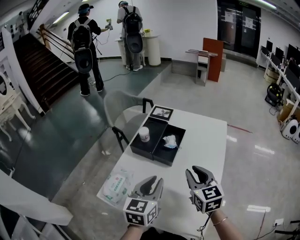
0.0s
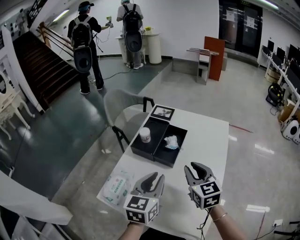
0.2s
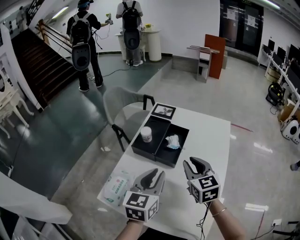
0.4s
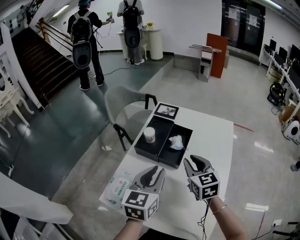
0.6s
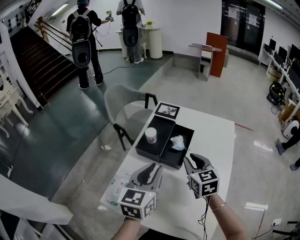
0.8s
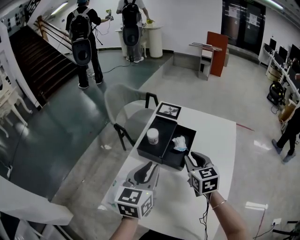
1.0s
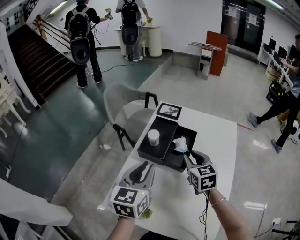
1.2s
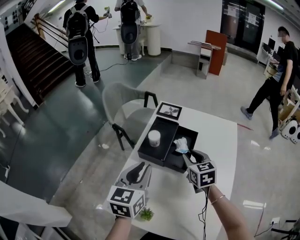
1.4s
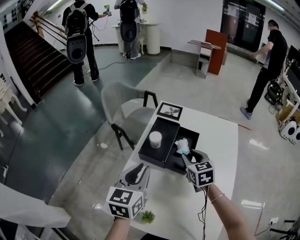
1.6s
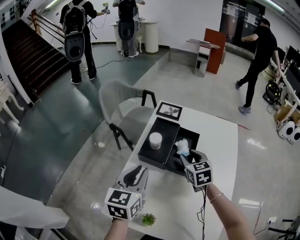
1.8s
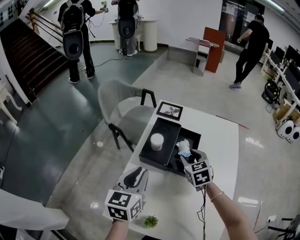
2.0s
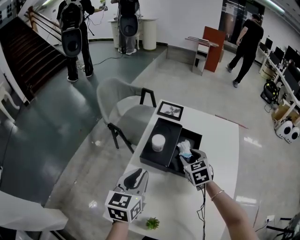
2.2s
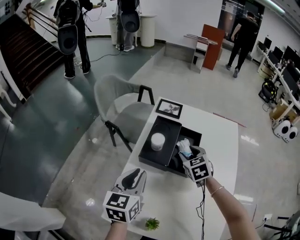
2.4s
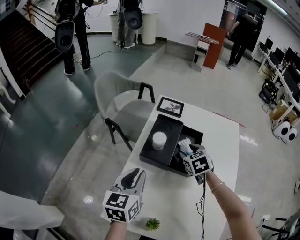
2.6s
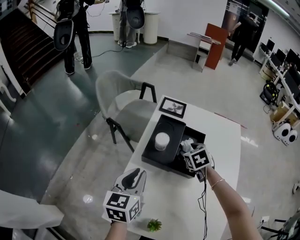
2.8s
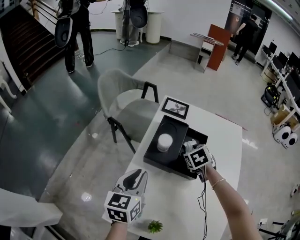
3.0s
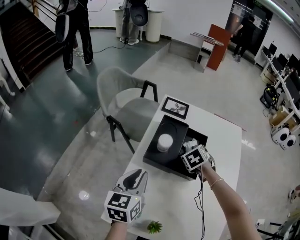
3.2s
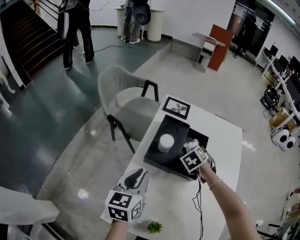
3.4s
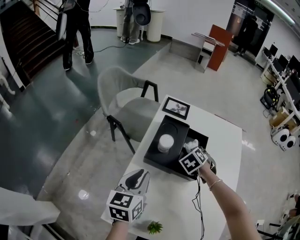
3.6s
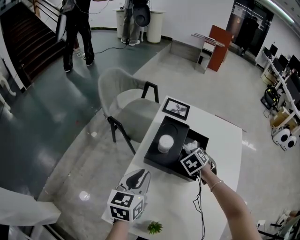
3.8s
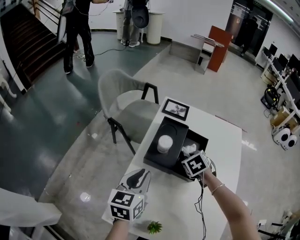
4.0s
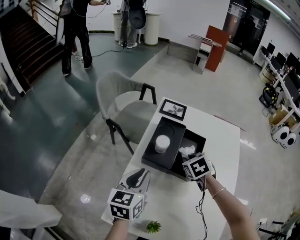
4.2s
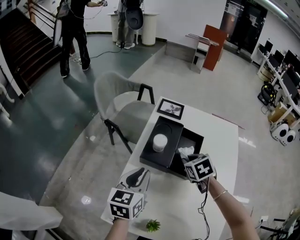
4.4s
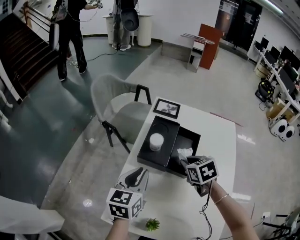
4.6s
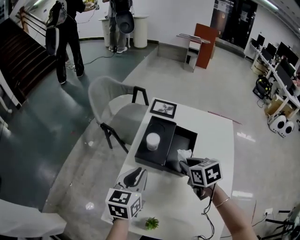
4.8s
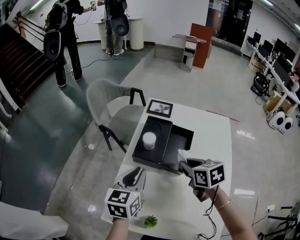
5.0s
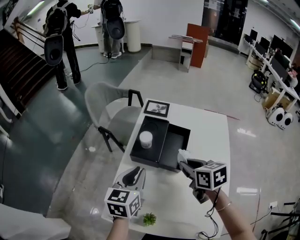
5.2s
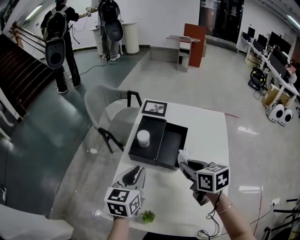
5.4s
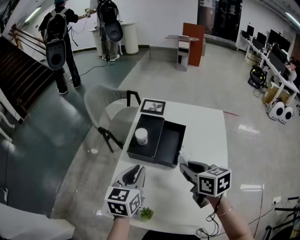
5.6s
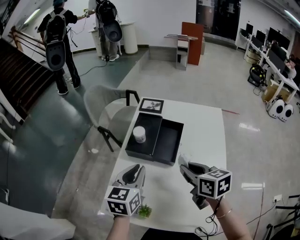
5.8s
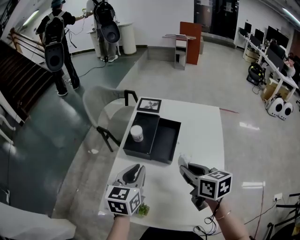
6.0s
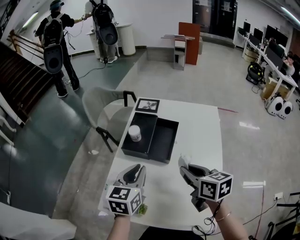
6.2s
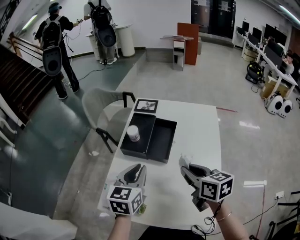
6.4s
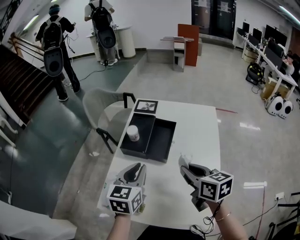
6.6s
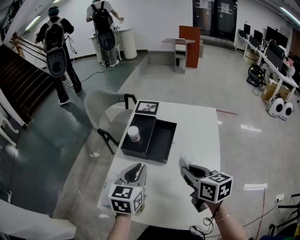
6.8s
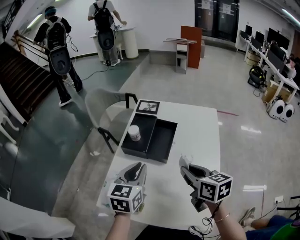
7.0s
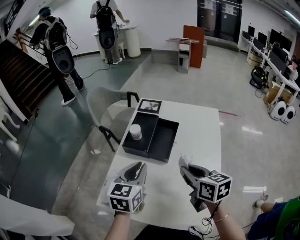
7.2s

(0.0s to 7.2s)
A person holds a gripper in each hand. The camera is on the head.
0.0s - 1.4s: The left gripper goes about 15 cm to the left and forward; the right gripper travels forward and to the left by some 15 cm.
1.4s - 2.8s: The left gripper is displaced downward and to the left by some 10 cm. Meanwhile the right gripper goes some 10 cm downward and forward, changes its angle by roughly 30 degrees, and opens.
2.8s - 4.4s: The right gripper moves backward, about 5 cm, and closes its fingers.
4.4s - 5.8s: The right gripper is displaced backward and upward by roughly 20 cm, and rotates about 40 degrees, while the left gripper is displaced backward and to the right by roughly 10 cm.
5.8s - 7.2s: The right gripper ends up roughly 5 cm from where it was. The left gripper changes place by about 5 cm.

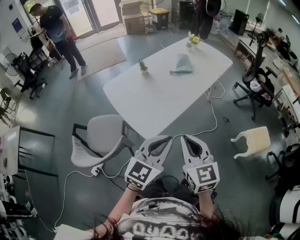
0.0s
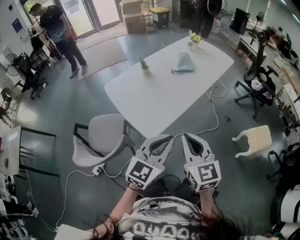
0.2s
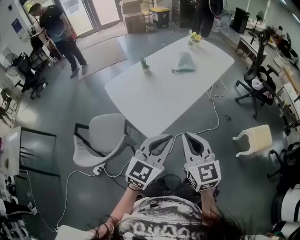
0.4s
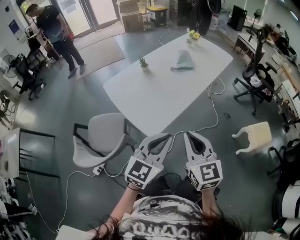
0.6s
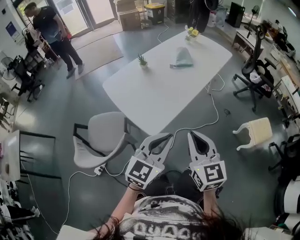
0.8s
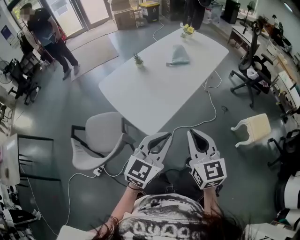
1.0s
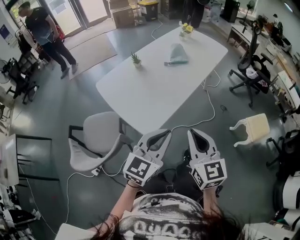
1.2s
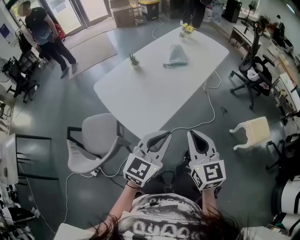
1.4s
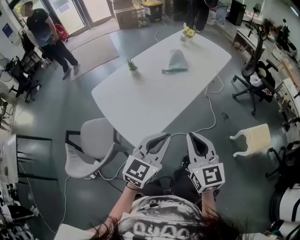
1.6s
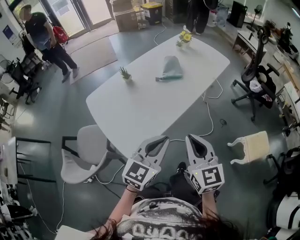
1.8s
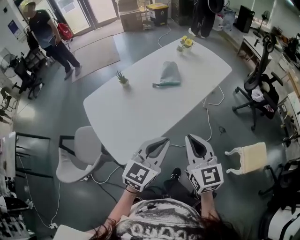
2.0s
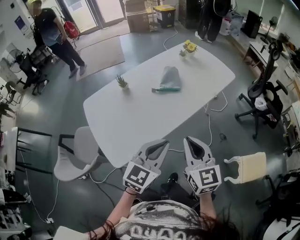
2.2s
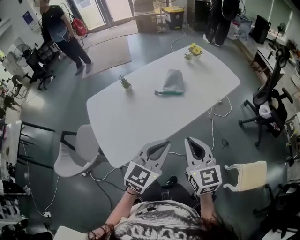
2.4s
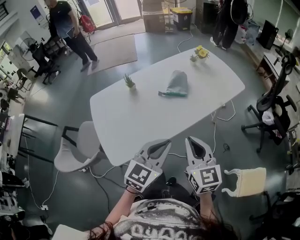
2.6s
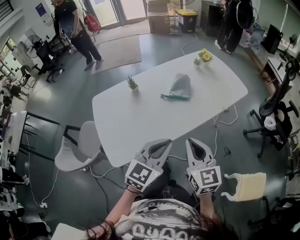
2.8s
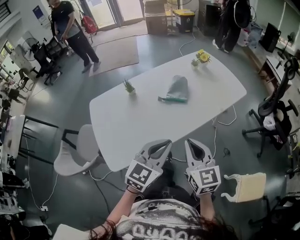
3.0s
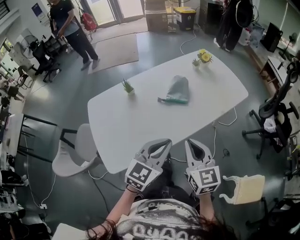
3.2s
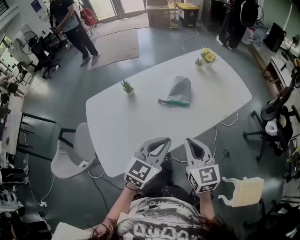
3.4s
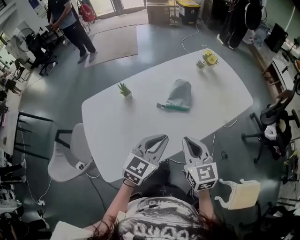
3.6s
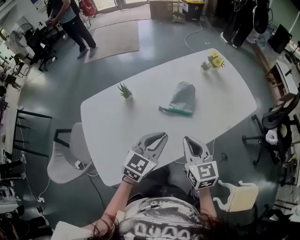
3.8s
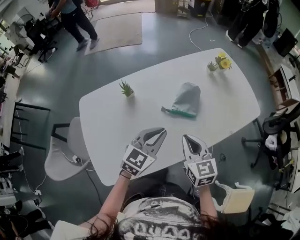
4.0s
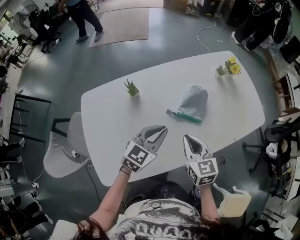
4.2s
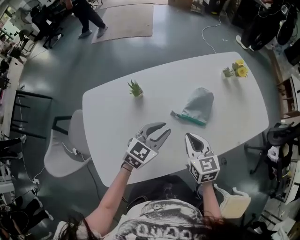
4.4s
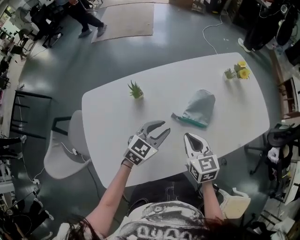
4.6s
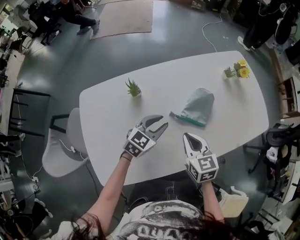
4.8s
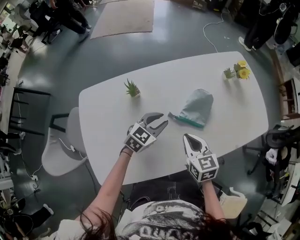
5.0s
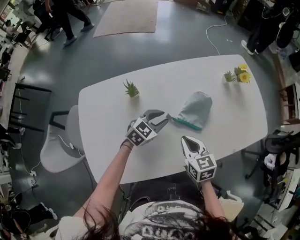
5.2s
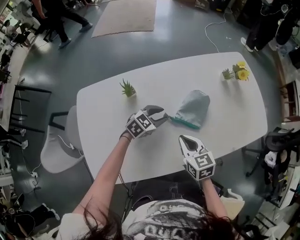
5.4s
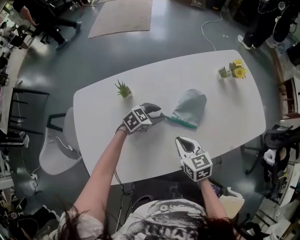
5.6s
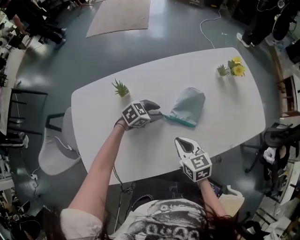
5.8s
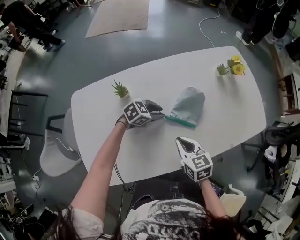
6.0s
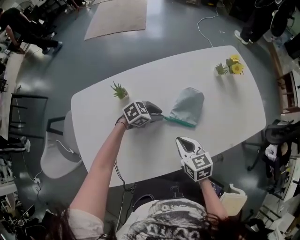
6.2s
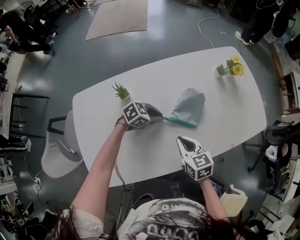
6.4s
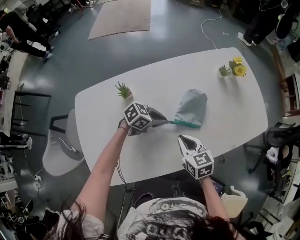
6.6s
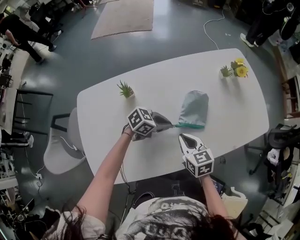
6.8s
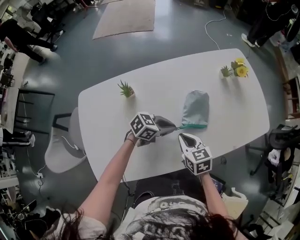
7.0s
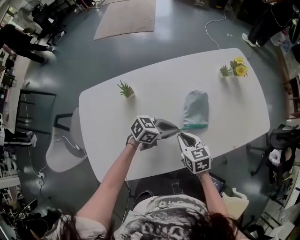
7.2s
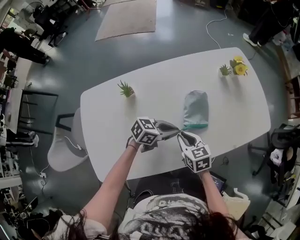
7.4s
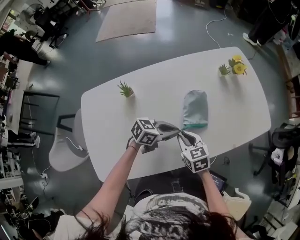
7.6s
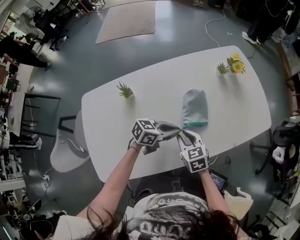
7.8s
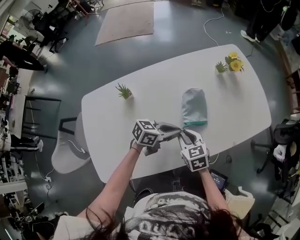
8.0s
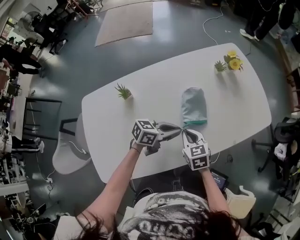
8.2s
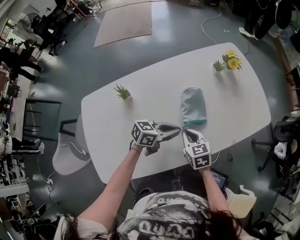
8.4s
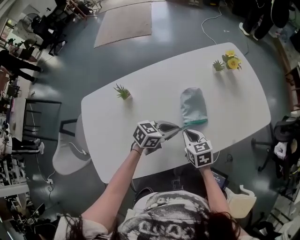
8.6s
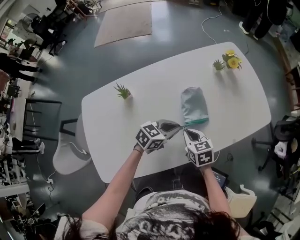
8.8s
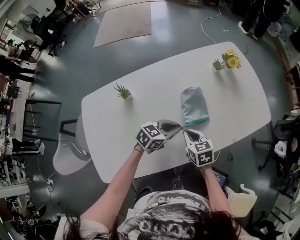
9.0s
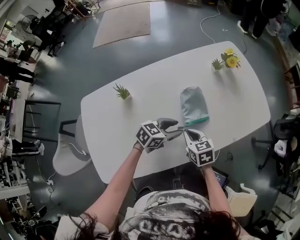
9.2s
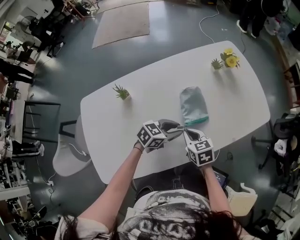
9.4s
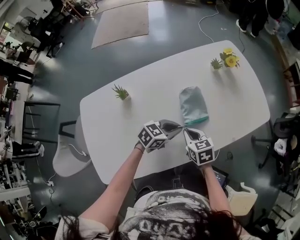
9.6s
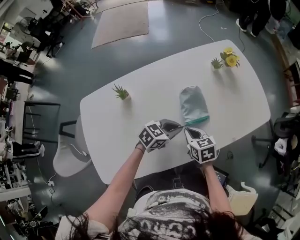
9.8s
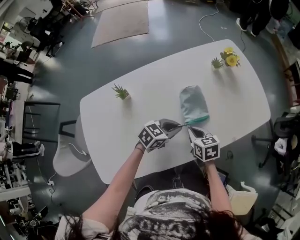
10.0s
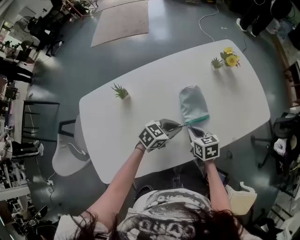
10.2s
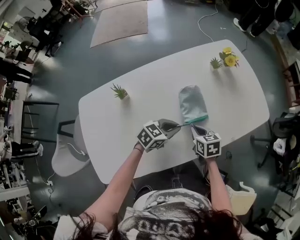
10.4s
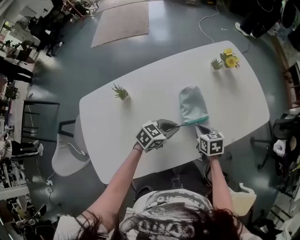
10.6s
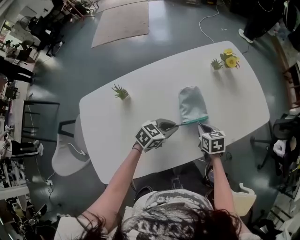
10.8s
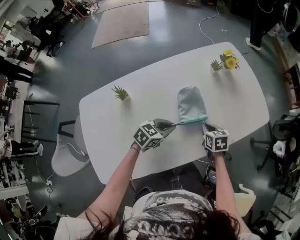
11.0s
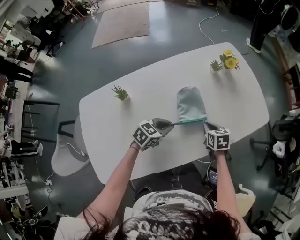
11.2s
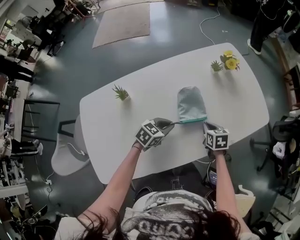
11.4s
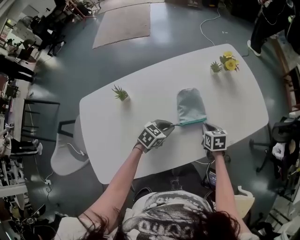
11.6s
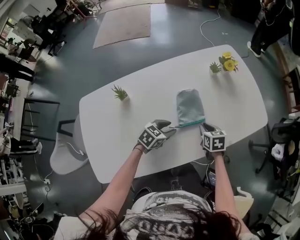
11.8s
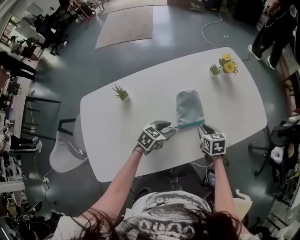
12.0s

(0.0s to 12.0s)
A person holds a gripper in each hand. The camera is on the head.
0.0s - 1.6s: The right gripper shifts roughly 10 cm forward and to the right; the left gripper goes about 10 cm forward.
1.6s - 3.0s: Both grippers move forward and to the right, approximately 25 cm.
3.0s - 4.4s: The two grippers go approximately 30 cm forward and downward. The right gripper swivels about 20 degrees.
4.4s - 6.0s: The left gripper moves downward and forward, roughly 15 cm, and changes its angle by some 30 degrees. The right gripper goes roughly 5 cm downward.
6.0s - 7.6s: The left gripper changes place by about 15 cm, swivels approximately 30 degrees, and closes.
7.6s - 9.0s: The grippers make only small movements.
9.0s - 10.4s: The left gripper opens, then closes once more; the right gripper moves about 5 cm.
10.4s - 12.0s: The left gripper opens; the right gripper is displaced to the right by approximately 5 cm, and opens.

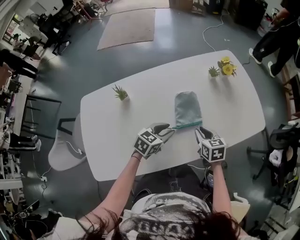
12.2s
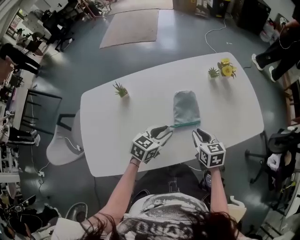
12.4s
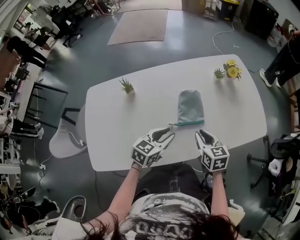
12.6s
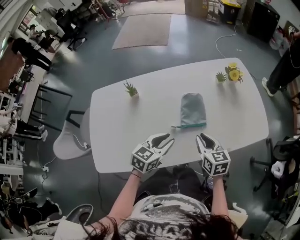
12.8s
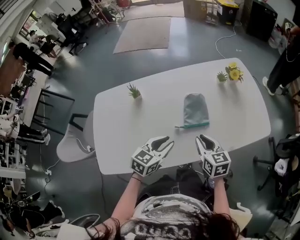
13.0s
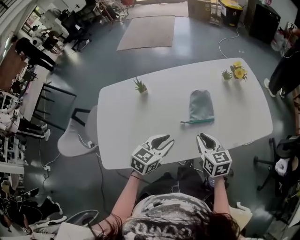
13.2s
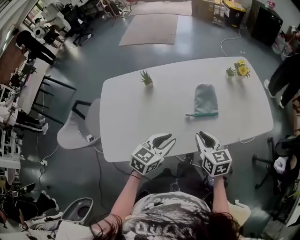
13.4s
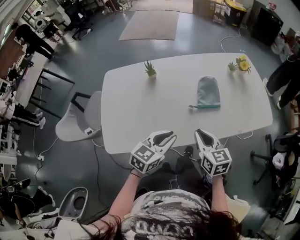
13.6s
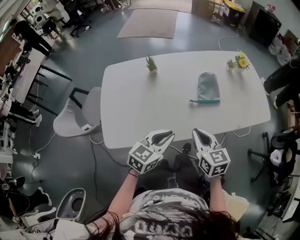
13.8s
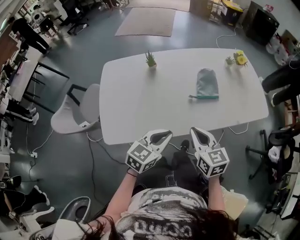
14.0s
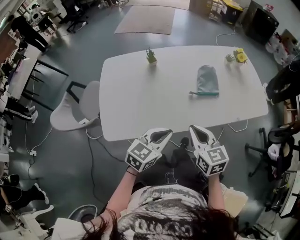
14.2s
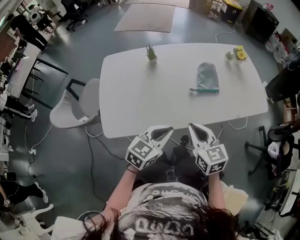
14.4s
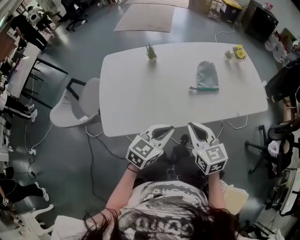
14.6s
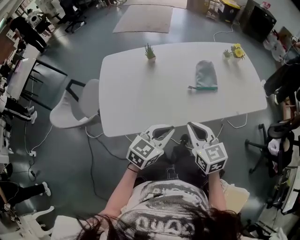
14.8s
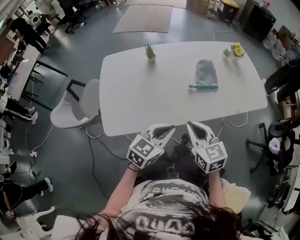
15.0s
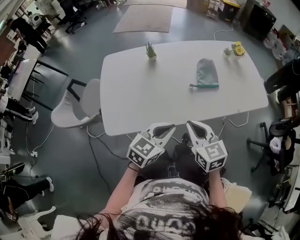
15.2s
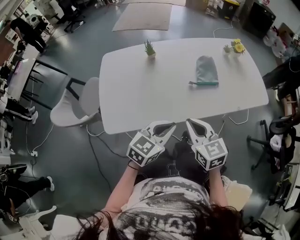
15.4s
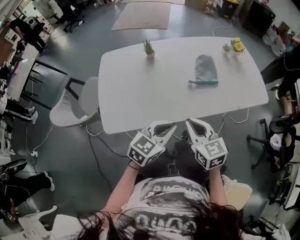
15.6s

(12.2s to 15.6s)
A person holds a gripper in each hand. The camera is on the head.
12.2s - 13.8s: The right gripper heads backward, to the left and upward, covering about 25 cm, rotates about 20 degrees, and closes up. Meanwhile the left gripper goes about 25 cm backward and upward, changes its angle by roughly 20 degrees, and closes up.
13.8s - 15.6s: The grippers both shift backward by roughly 5 cm.

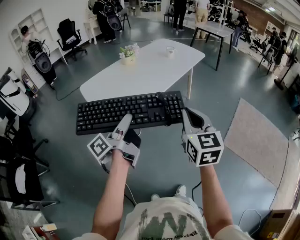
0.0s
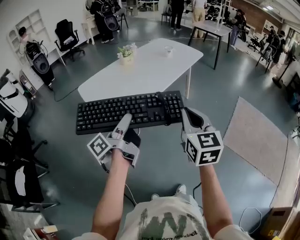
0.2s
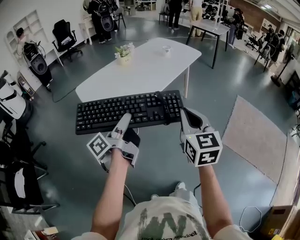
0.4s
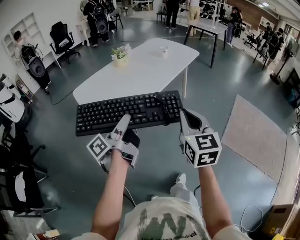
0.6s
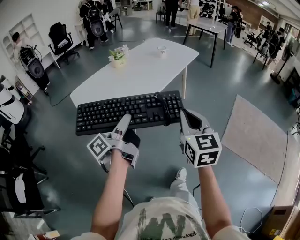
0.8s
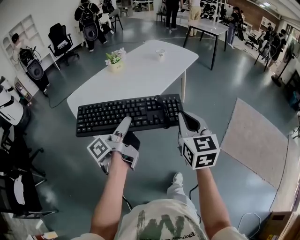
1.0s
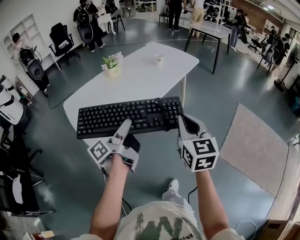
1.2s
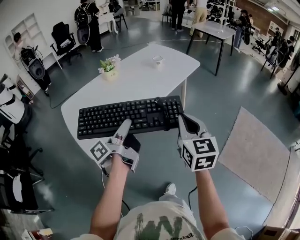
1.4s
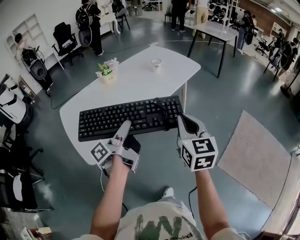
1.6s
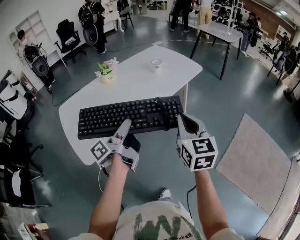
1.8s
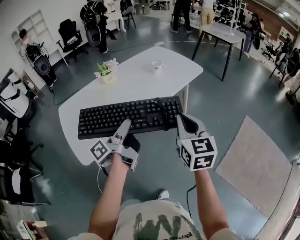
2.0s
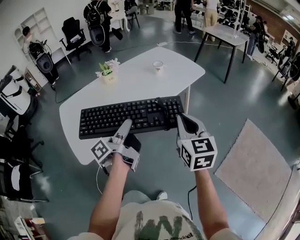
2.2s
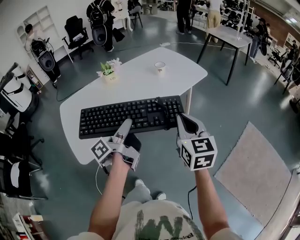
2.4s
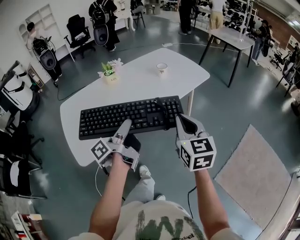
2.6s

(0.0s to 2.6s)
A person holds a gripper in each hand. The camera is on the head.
0.0s - 1.2s: The right gripper shifts by about 15 cm.
1.2s - 2.6s: The right gripper shifts by about 20 cm.
